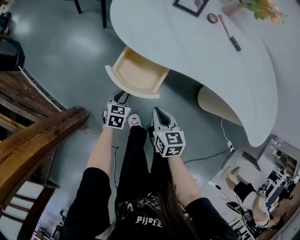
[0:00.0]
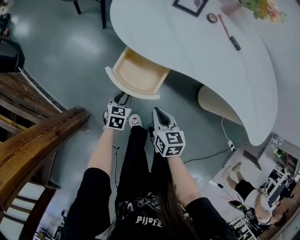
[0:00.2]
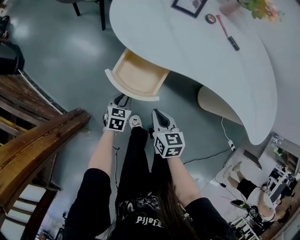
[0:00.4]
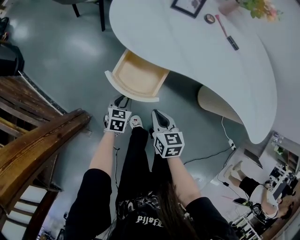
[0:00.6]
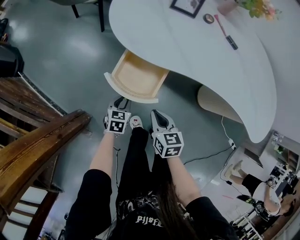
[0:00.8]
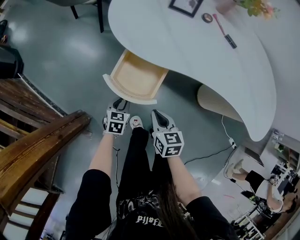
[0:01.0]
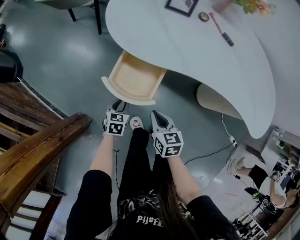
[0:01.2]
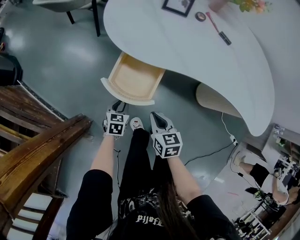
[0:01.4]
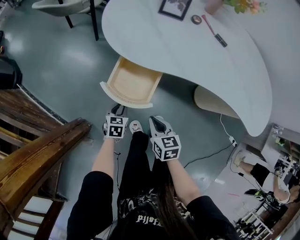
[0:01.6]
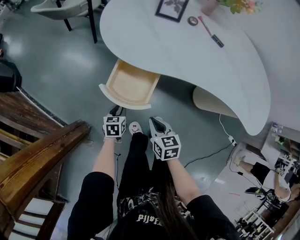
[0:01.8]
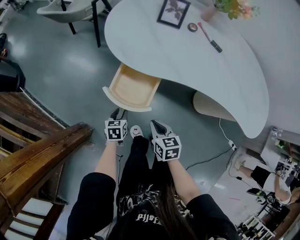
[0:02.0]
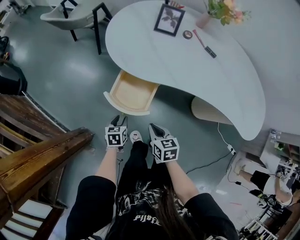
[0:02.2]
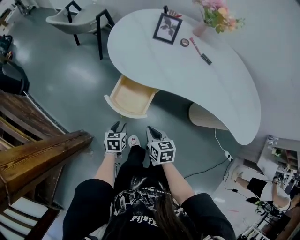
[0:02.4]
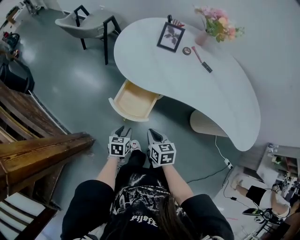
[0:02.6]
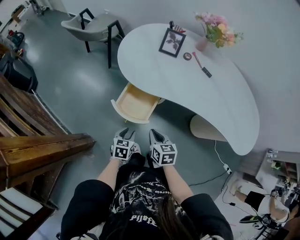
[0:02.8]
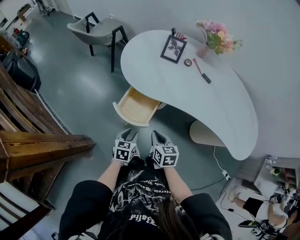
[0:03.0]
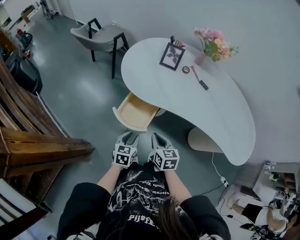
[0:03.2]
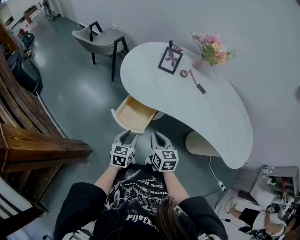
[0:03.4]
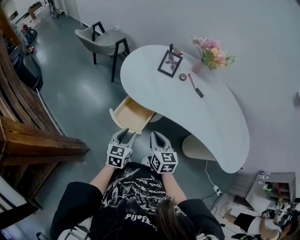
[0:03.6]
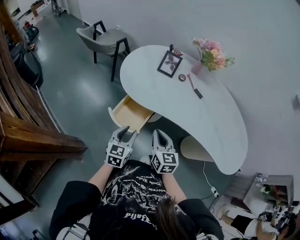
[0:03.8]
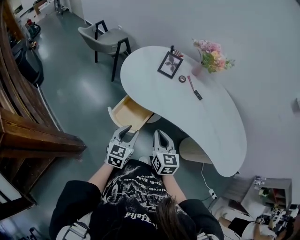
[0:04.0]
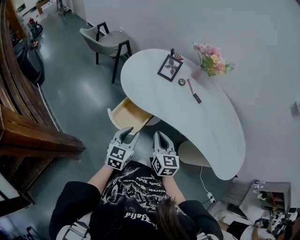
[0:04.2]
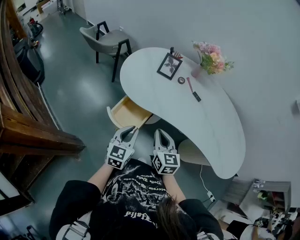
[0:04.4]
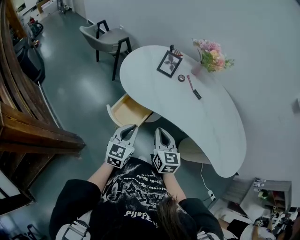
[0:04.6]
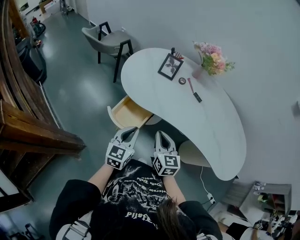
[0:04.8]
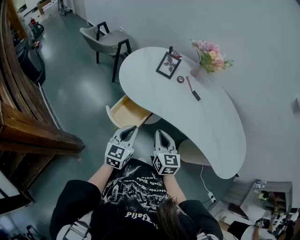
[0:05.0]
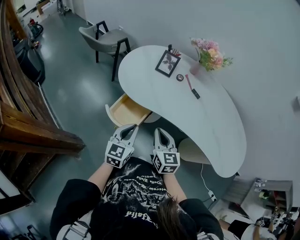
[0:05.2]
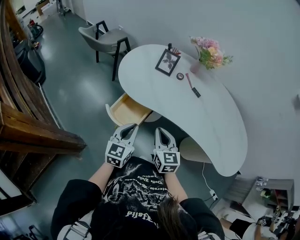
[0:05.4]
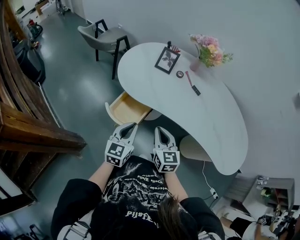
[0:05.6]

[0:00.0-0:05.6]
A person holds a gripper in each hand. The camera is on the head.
0:00.0 to 0:01.4: The grippers stay close to where they were, moving slightly.
0:01.4 to 0:02.8: The left gripper heads upward and backward, covering some 15 cm; the right gripper shifts approximately 10 cm upward.
0:02.8 to 0:04.2: Both grippers travel together upward and to the right, about 20 cm. The right gripper changes its angle by roughly 20 degrees, while the left gripper turns by roughly 30 degrees.
0:04.2 to 0:05.6: The left gripper closes.

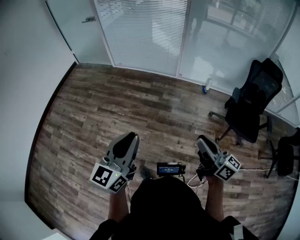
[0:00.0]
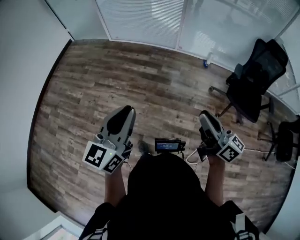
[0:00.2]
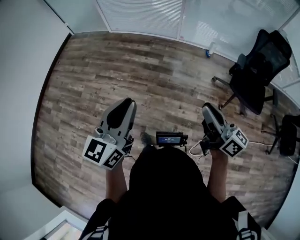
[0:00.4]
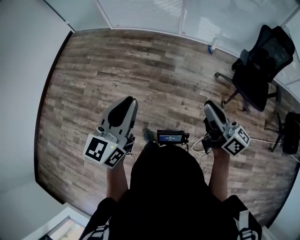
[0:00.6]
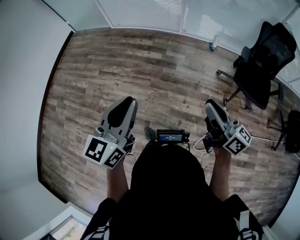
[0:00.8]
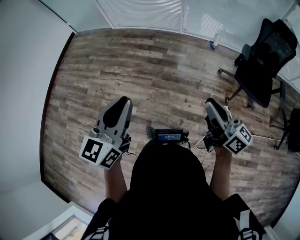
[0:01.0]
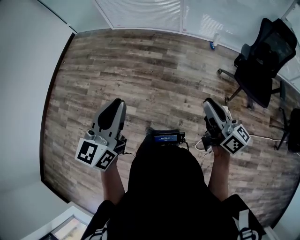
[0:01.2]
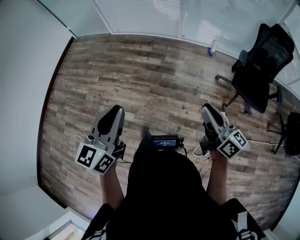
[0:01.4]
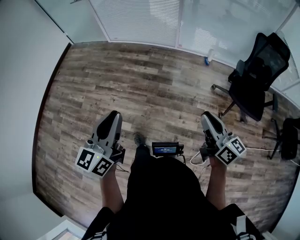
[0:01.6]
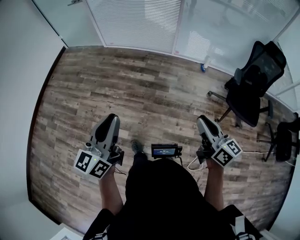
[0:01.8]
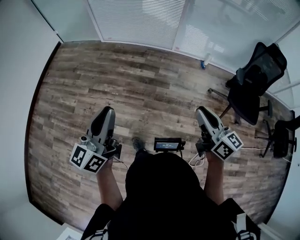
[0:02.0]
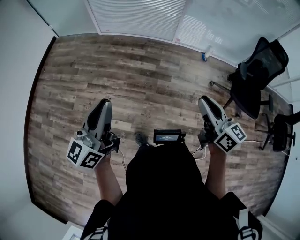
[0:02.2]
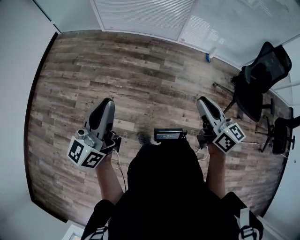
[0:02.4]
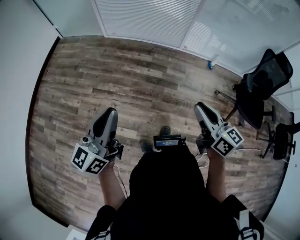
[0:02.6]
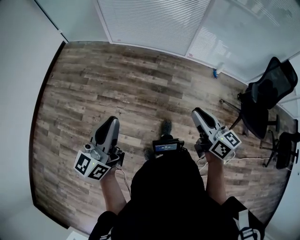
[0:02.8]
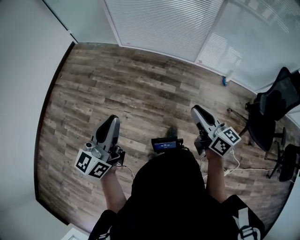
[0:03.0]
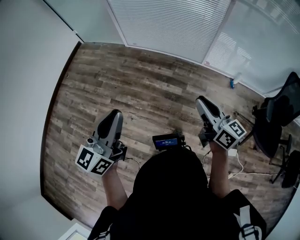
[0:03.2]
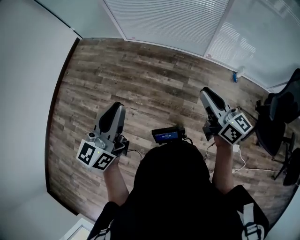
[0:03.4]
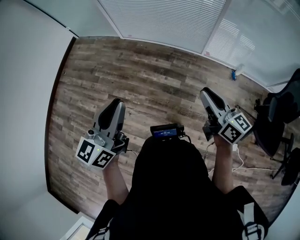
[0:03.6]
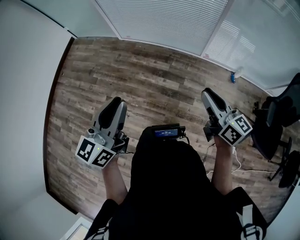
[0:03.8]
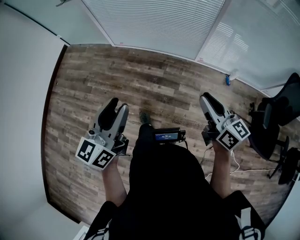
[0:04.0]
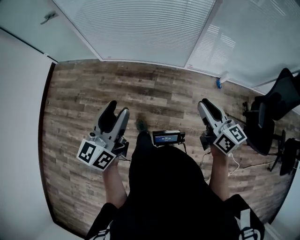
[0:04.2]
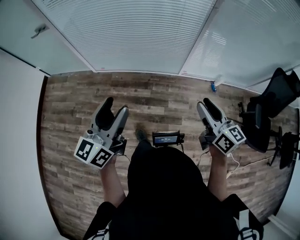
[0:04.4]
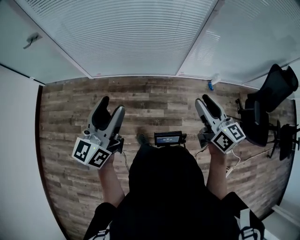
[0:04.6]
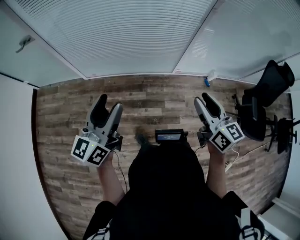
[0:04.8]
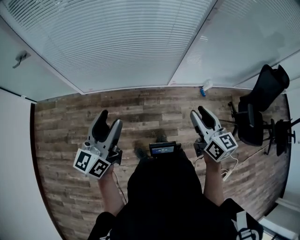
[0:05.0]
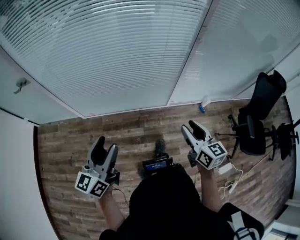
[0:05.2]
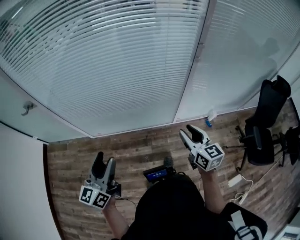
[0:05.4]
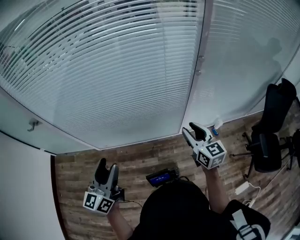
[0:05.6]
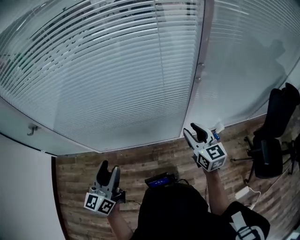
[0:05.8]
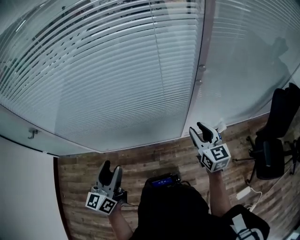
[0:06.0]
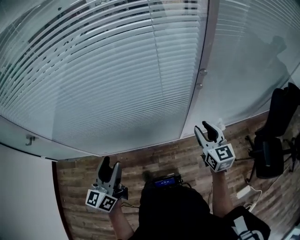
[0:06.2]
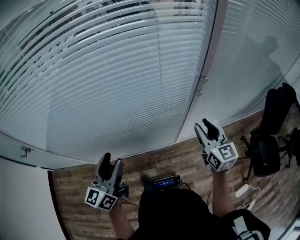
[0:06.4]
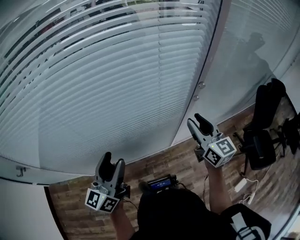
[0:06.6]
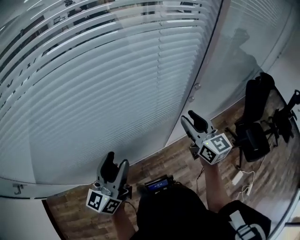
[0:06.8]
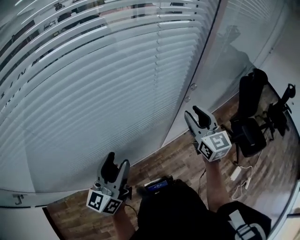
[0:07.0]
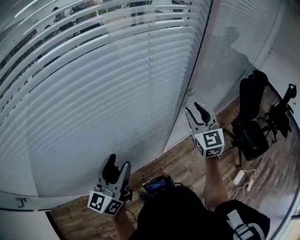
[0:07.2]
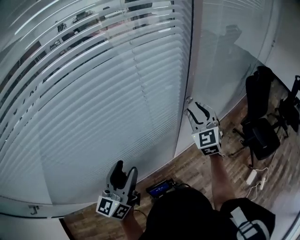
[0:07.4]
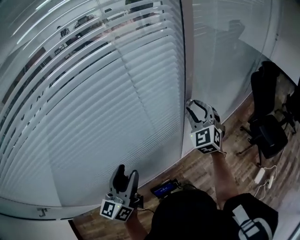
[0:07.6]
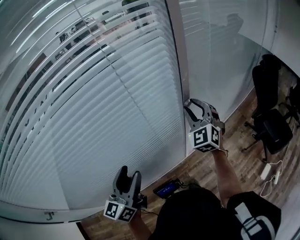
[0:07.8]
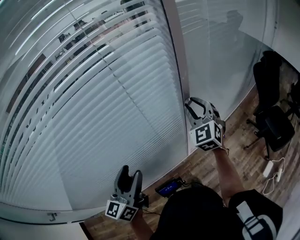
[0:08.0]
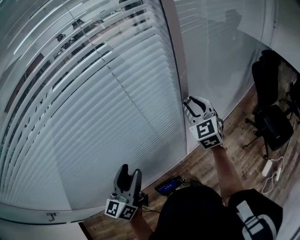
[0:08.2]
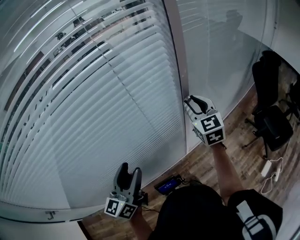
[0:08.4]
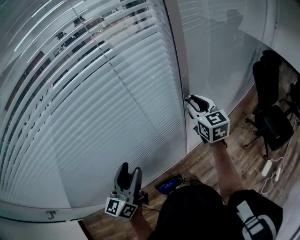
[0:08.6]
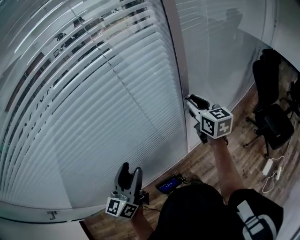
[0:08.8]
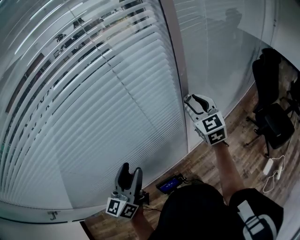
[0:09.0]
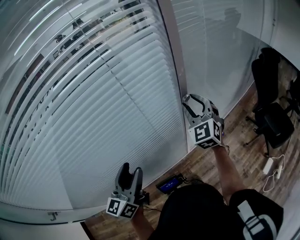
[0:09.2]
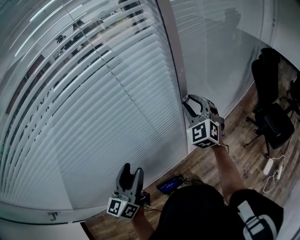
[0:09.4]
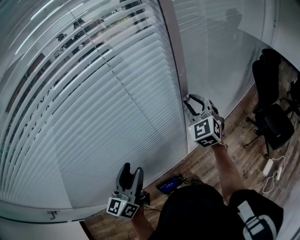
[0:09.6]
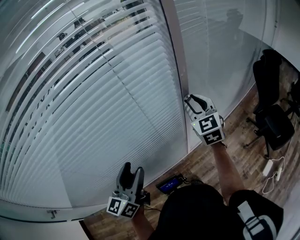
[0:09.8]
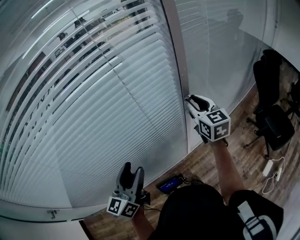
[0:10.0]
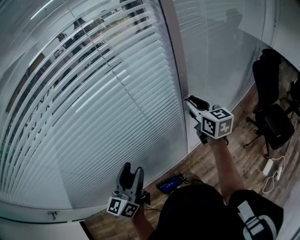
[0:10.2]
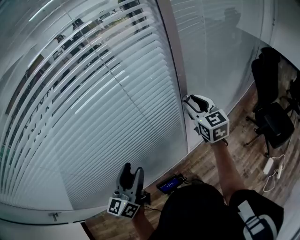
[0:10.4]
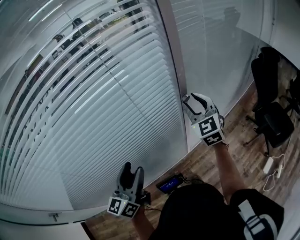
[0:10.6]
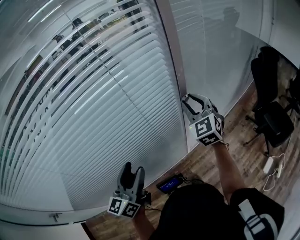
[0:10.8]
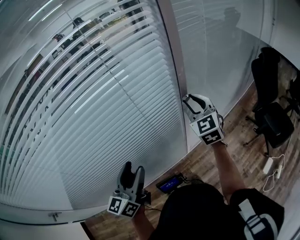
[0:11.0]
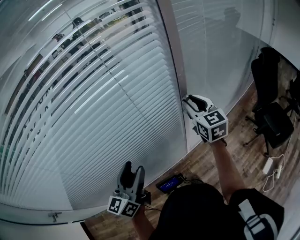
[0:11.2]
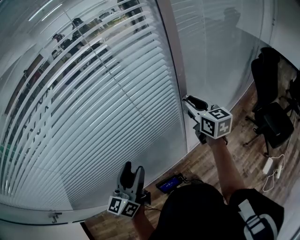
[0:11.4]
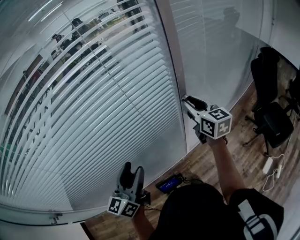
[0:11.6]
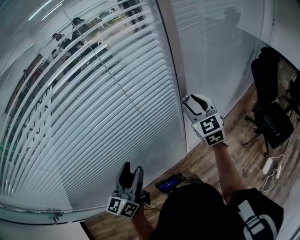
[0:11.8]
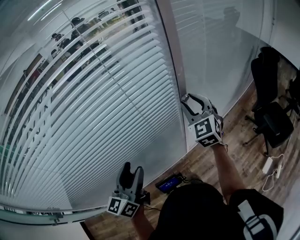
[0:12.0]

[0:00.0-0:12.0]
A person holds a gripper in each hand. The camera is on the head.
0:00.0 to 0:01.6: The left gripper ends up approximately 5 cm from where it was, while the right gripper shifts by some 5 cm.
0:01.6 to 0:03.0: Both grippers travel together forward and to the left, roughly 35 cm.
0:03.0 to 0:04.4: The two grippers go approximately 35 cm forward. The right gripper rotates about 20 degrees. The left gripper opens its fingers.
0:04.4 to 0:06.0: Both grippers travel together forward, approximately 30 cm. The right gripper rotates roughly 30 degrees.
0:06.0 to 0:07.6: The right gripper ends up roughly 20 cm from where it was, and turns by some 50 degrees. The left gripper shifts by some 20 cm, and rotates about 30 degrees.
0:07.6 to 0:09.0: The right gripper changes its angle by about 30 degrees.
0:10.4 to 0:12.0: The right gripper rotates about 30 degrees.

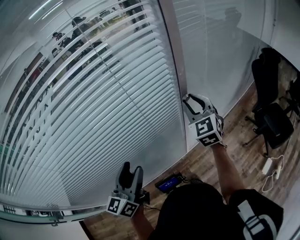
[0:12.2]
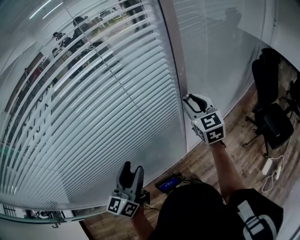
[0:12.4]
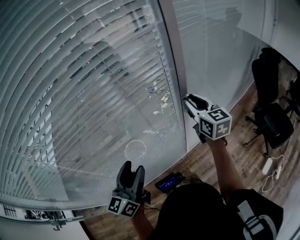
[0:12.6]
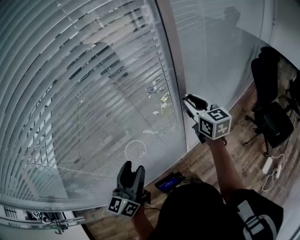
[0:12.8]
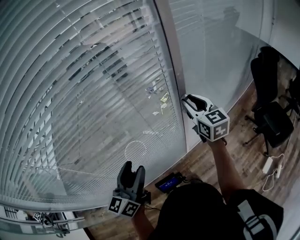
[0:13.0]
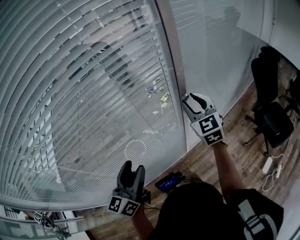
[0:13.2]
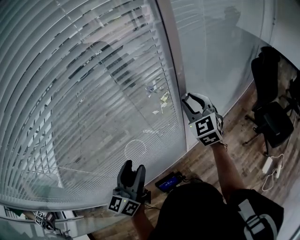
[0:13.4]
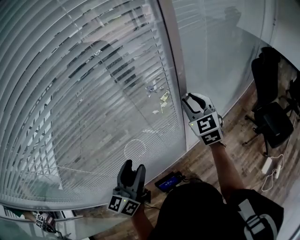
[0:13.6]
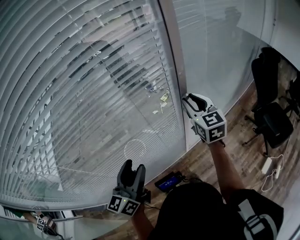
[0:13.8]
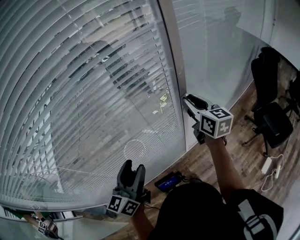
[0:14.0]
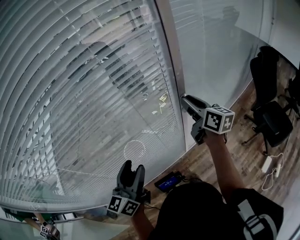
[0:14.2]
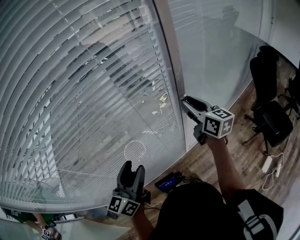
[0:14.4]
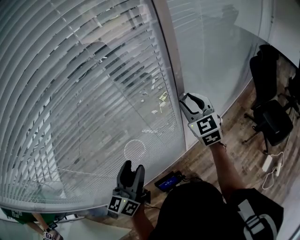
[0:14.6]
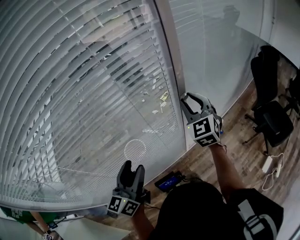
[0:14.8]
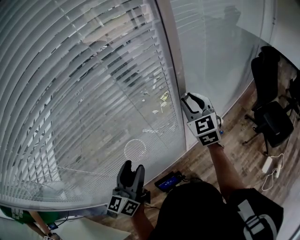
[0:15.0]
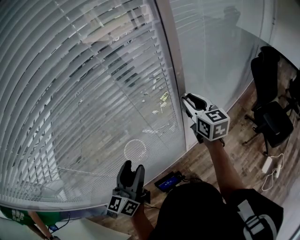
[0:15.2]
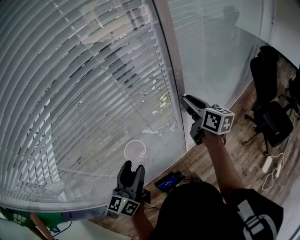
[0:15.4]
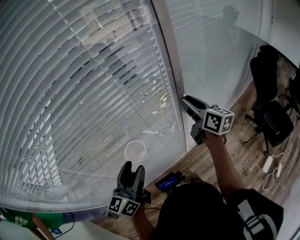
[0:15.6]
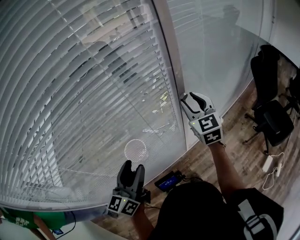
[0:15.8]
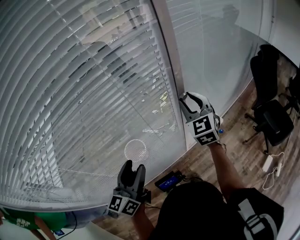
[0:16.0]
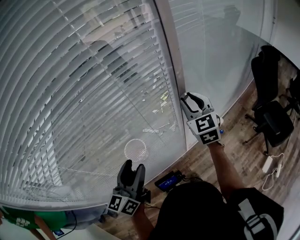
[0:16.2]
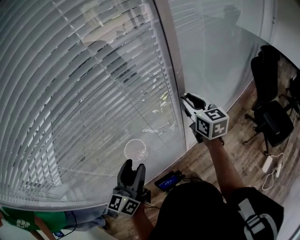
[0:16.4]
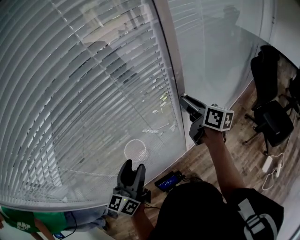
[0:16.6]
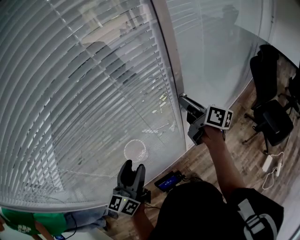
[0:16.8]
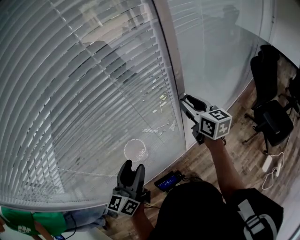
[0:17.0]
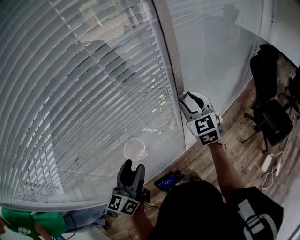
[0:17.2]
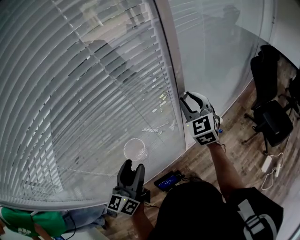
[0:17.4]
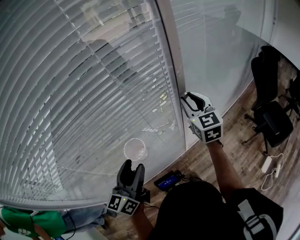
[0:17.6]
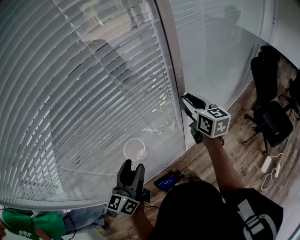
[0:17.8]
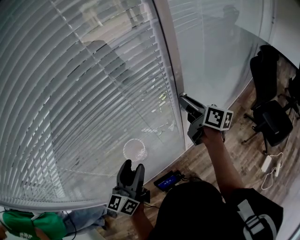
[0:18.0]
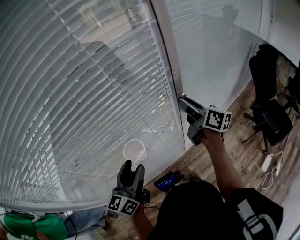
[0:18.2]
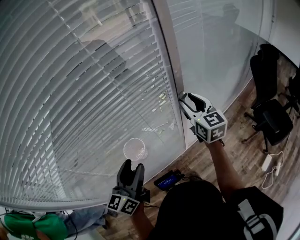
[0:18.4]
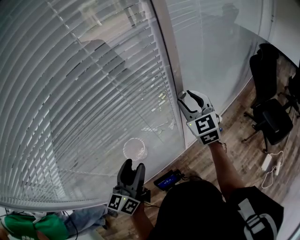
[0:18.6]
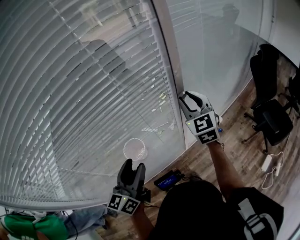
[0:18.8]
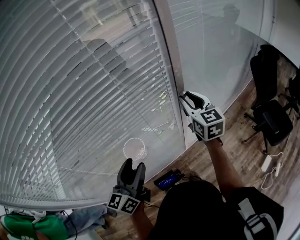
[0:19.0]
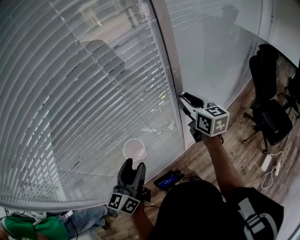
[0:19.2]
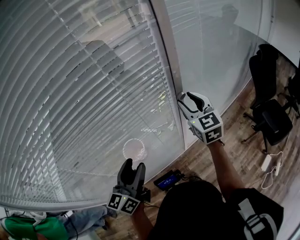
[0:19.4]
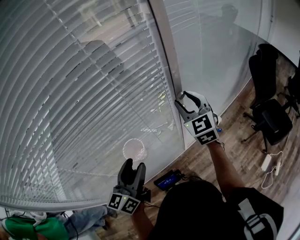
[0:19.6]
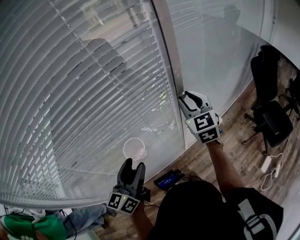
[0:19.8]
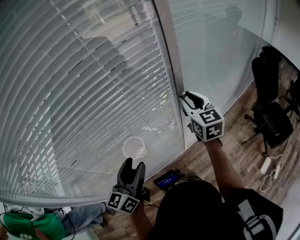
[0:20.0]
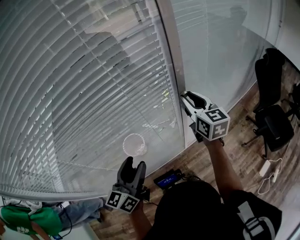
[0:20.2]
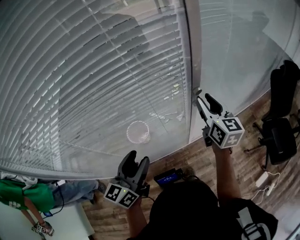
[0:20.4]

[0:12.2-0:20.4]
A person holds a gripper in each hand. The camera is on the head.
0:12.2 to 0:13.8: The right gripper swivels about 20 degrees.
0:13.8 to 0:15.4: The right gripper turns by about 40 degrees.
0:15.4 to 0:17.2: The right gripper twists some 50 degrees counterclockwise, seen from behind.
0:18.8 to 0:20.4: The right gripper changes its angle by approximately 30 degrees.
